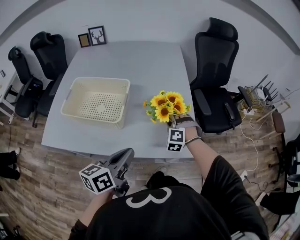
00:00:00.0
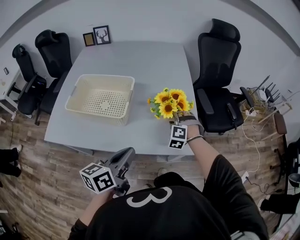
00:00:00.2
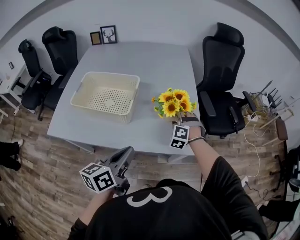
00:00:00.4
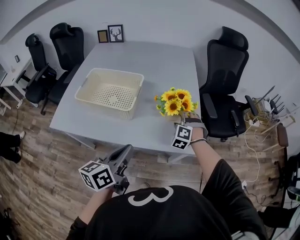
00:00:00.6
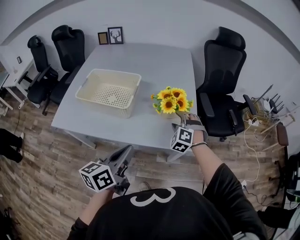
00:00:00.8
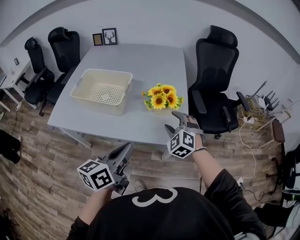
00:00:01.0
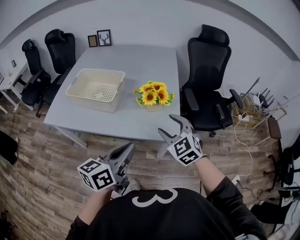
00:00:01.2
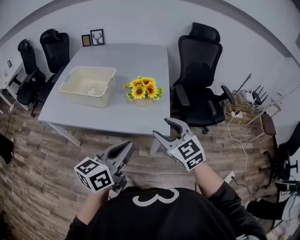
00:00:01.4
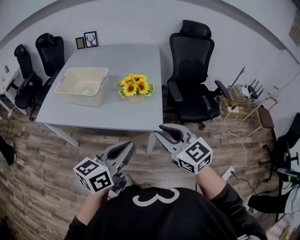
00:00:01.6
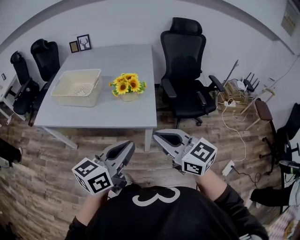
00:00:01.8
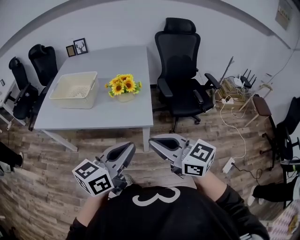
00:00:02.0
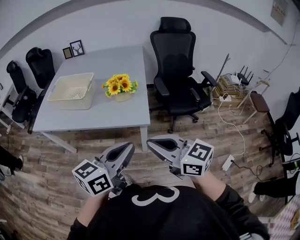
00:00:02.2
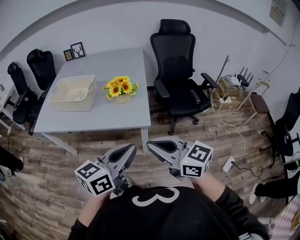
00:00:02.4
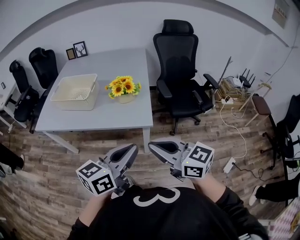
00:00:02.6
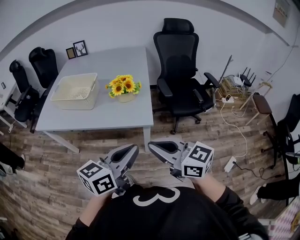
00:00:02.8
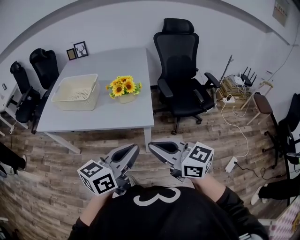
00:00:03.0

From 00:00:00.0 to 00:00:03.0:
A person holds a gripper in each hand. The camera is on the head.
From 00:00:00.0 to 00:00:01.6: The right gripper is displaced backward, upward and to the right by roughly 40 cm, tips its fingers upward by roughly 30 degrees, and opens, then closes once more; the left gripper is displaced to the right, backward and upward by approximately 25 cm.
From 00:00:01.6 to 00:00:03.0: The right gripper moves backward, about 10 cm, rotates roughly 20 degrees, and closes. The left gripper heads to the right and backward, covering some 10 cm.

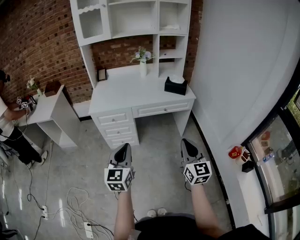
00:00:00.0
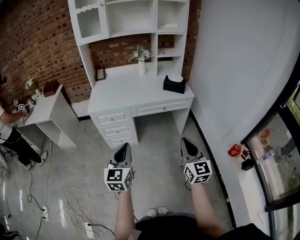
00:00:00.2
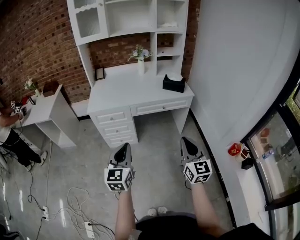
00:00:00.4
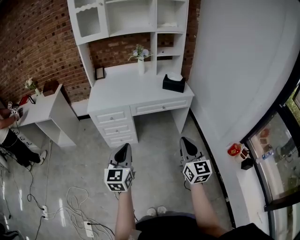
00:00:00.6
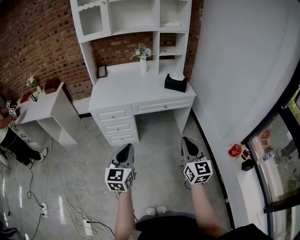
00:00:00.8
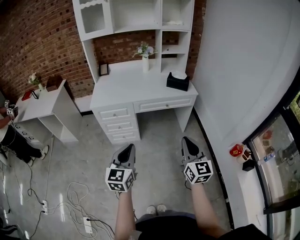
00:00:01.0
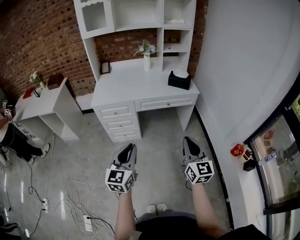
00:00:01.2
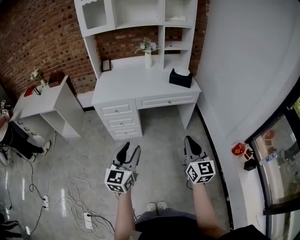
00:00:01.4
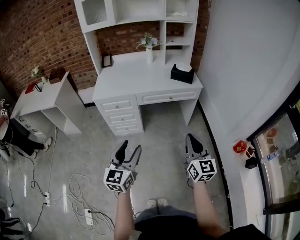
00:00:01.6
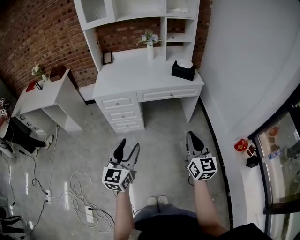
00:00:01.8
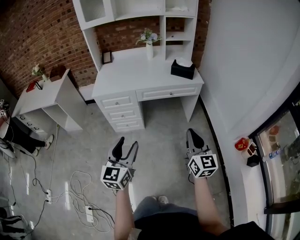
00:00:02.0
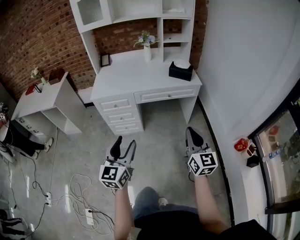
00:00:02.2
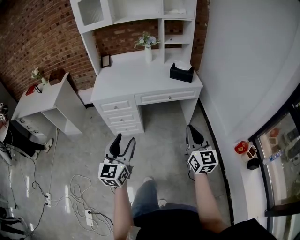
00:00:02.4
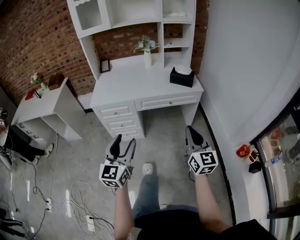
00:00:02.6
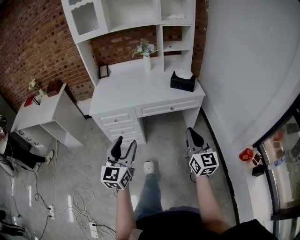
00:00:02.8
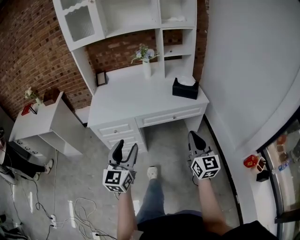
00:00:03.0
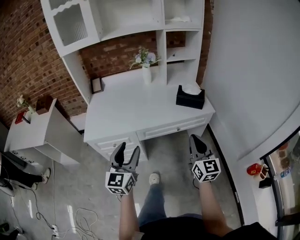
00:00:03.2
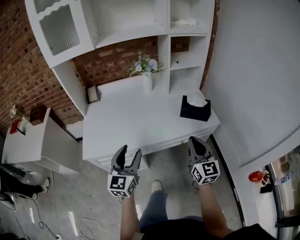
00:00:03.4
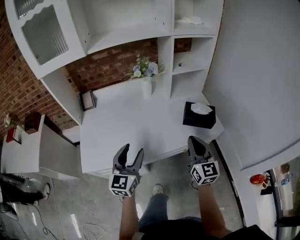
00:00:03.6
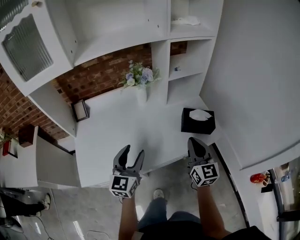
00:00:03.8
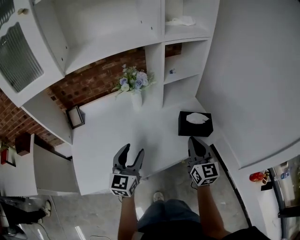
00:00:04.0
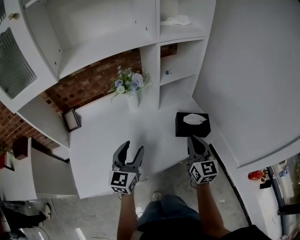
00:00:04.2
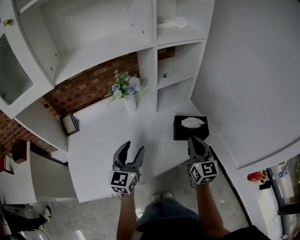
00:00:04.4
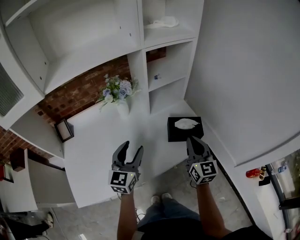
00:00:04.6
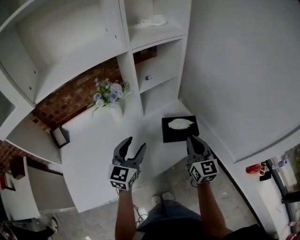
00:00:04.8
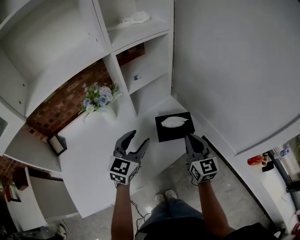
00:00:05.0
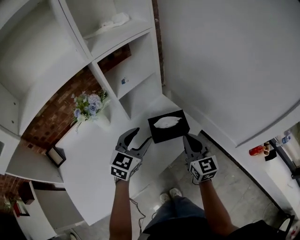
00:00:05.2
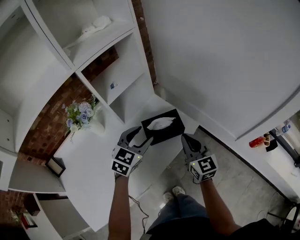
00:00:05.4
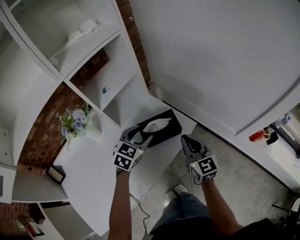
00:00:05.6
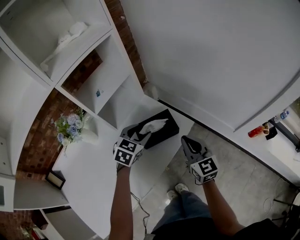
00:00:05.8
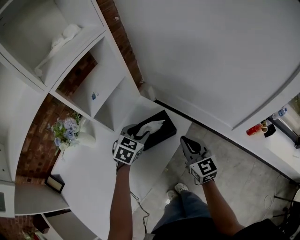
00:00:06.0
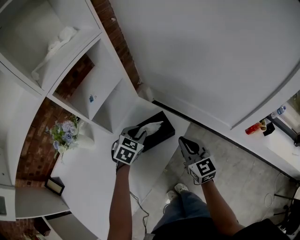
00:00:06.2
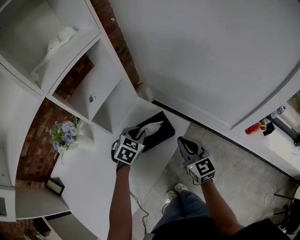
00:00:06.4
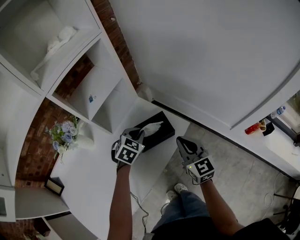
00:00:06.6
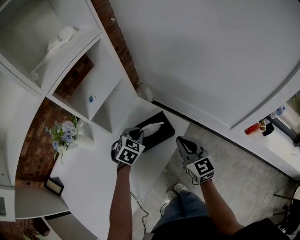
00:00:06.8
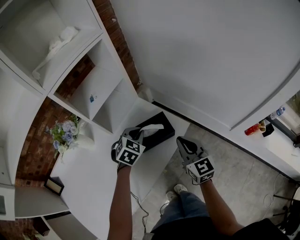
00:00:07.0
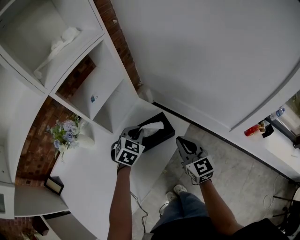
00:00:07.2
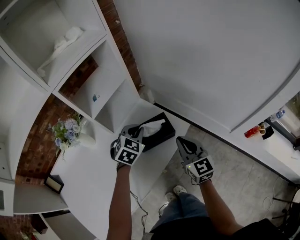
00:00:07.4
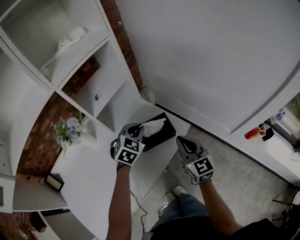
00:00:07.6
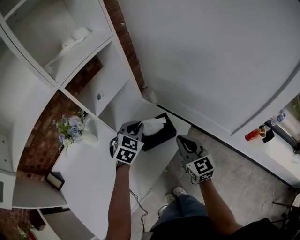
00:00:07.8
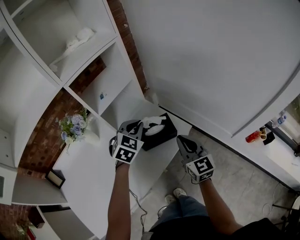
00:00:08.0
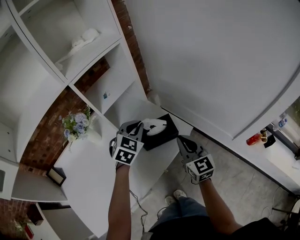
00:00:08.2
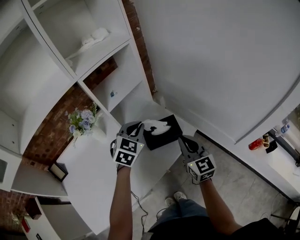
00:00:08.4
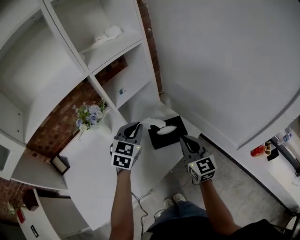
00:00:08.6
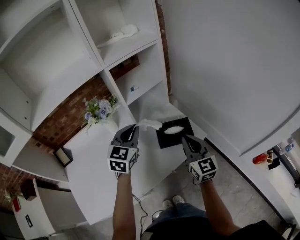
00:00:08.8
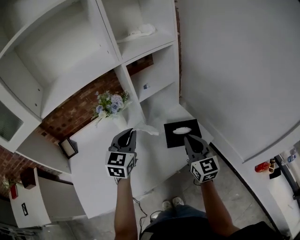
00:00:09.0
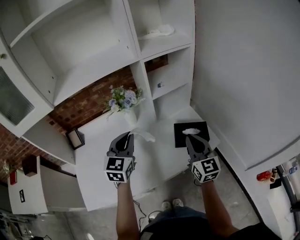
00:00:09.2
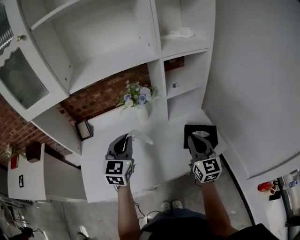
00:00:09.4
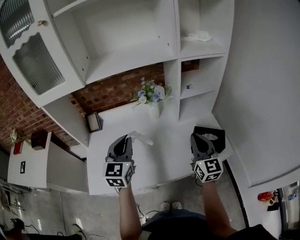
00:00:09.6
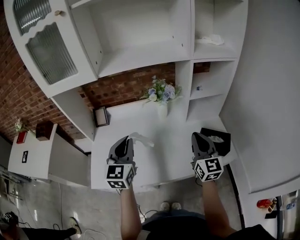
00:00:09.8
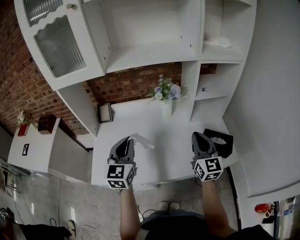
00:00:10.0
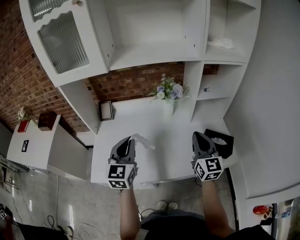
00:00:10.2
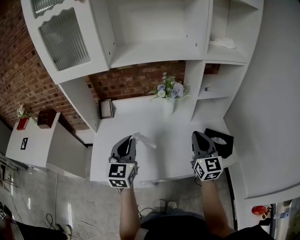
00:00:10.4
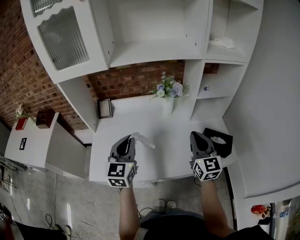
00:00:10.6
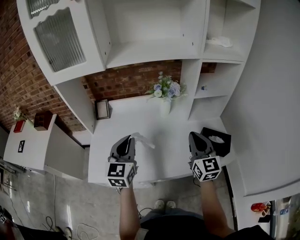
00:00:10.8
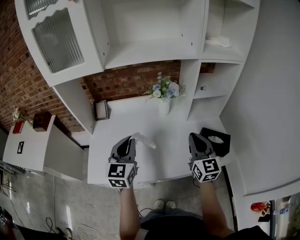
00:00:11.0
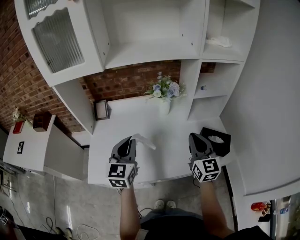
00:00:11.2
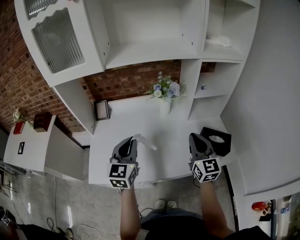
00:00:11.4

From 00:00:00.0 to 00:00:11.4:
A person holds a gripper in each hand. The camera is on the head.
From 00:00:00.0 to 00:00:01.4: The left gripper opens.
From 00:00:01.4 to 00:00:02.8: The grippers both shift forward by about 10 cm.
From 00:00:02.8 to 00:00:04.2: The pair of grippers is taken forward, about 50 cm.
From 00:00:04.2 to 00:00:05.6: The right gripper changes place by roughly 15 cm, while the left gripper changes place by roughly 30 cm, and turns by approximately 50 degrees.
From 00:00:05.6 to 00:00:07.2: The left gripper changes place by approximately 5 cm, and closes up.
From 00:00:07.2 to 00:00:08.6: The left gripper moves upward and to the left, about 15 cm, and rotates approximately 20 degrees; the right gripper heads upward, covering about 5 cm.
From 00:00:08.6 to 00:00:10.0: The right gripper moves roughly 25 cm, and changes its angle by roughly 30 degrees. Meanwhile the left gripper shifts by some 40 cm, and swivels roughly 50 degrees.
From 00:00:10.0 to 00:00:11.4: There are only small adjustments of the grippers.

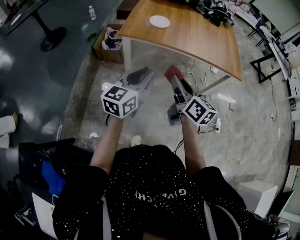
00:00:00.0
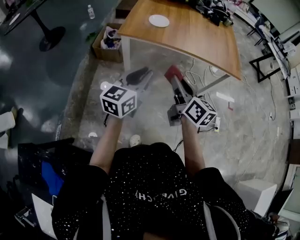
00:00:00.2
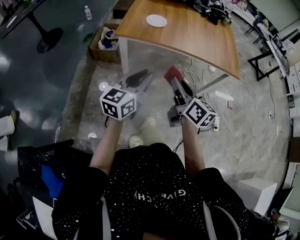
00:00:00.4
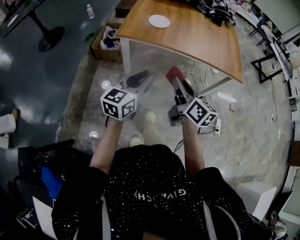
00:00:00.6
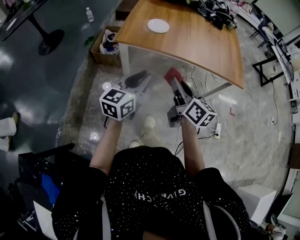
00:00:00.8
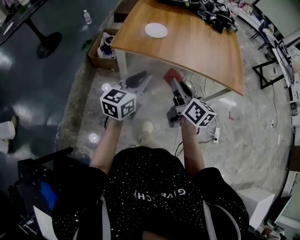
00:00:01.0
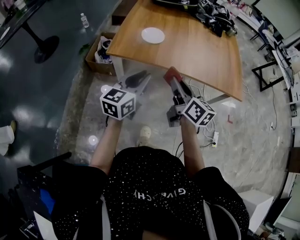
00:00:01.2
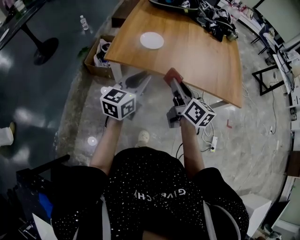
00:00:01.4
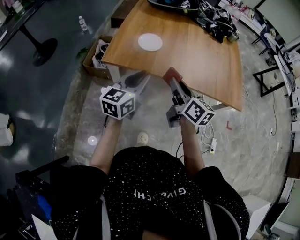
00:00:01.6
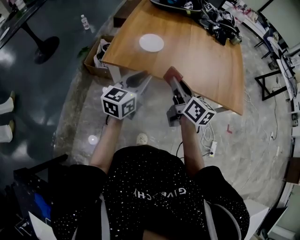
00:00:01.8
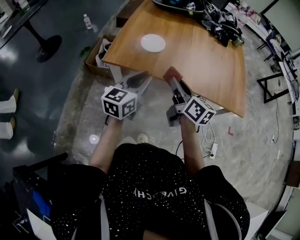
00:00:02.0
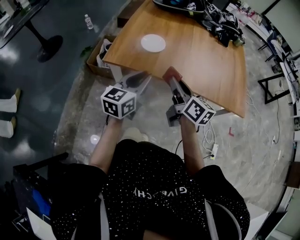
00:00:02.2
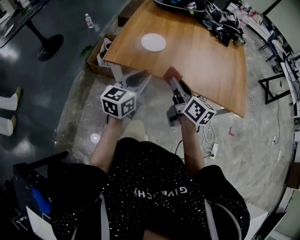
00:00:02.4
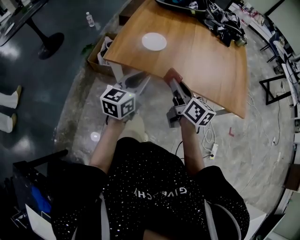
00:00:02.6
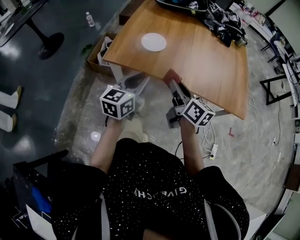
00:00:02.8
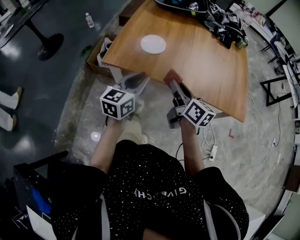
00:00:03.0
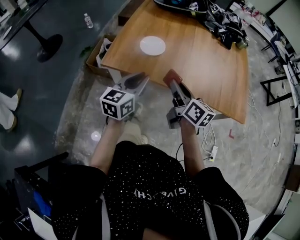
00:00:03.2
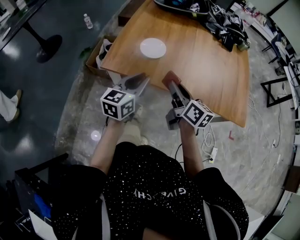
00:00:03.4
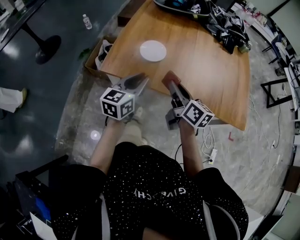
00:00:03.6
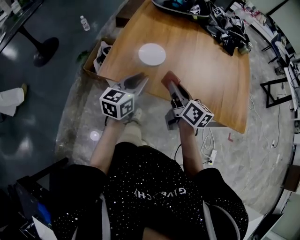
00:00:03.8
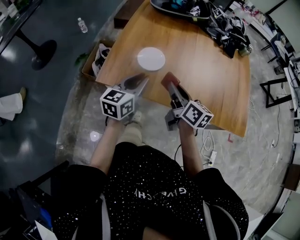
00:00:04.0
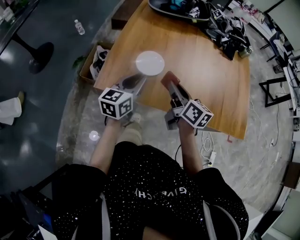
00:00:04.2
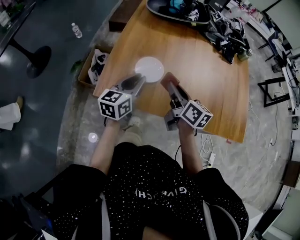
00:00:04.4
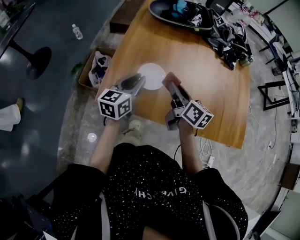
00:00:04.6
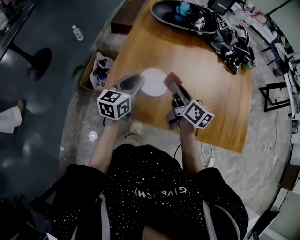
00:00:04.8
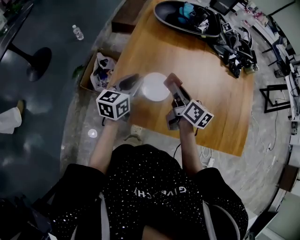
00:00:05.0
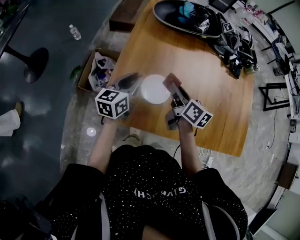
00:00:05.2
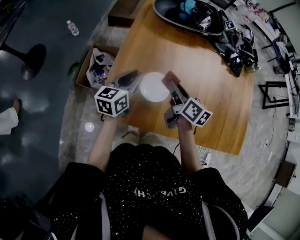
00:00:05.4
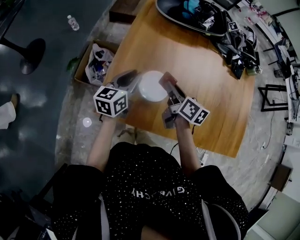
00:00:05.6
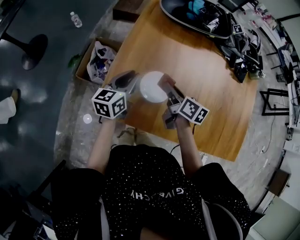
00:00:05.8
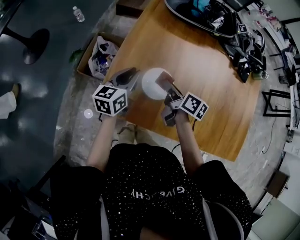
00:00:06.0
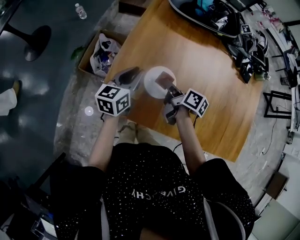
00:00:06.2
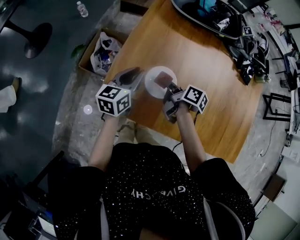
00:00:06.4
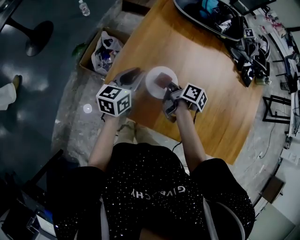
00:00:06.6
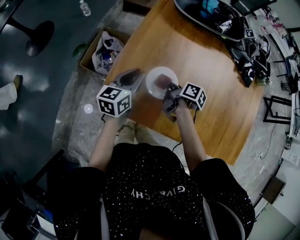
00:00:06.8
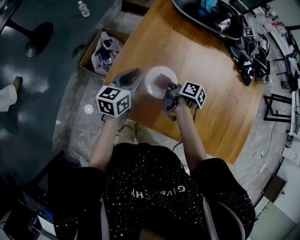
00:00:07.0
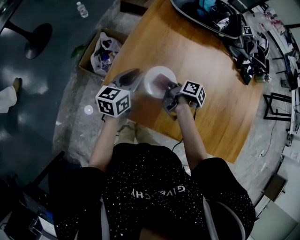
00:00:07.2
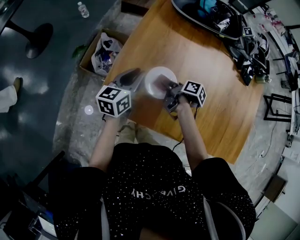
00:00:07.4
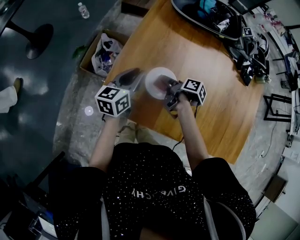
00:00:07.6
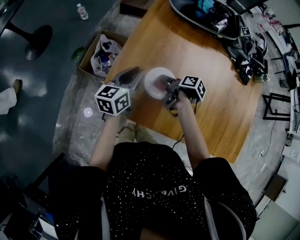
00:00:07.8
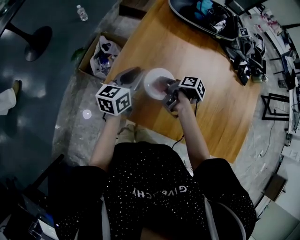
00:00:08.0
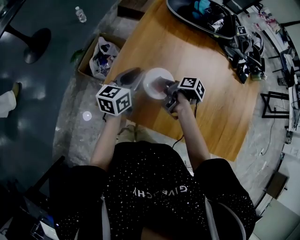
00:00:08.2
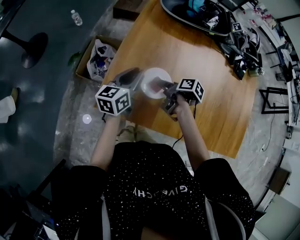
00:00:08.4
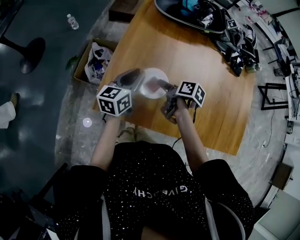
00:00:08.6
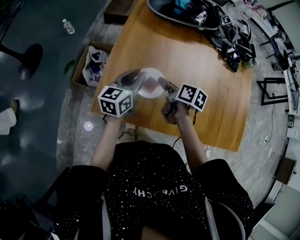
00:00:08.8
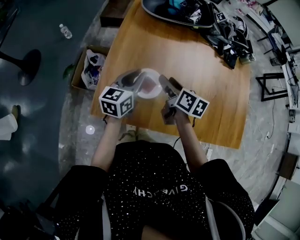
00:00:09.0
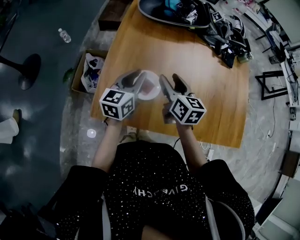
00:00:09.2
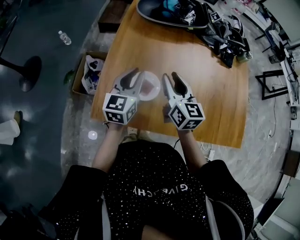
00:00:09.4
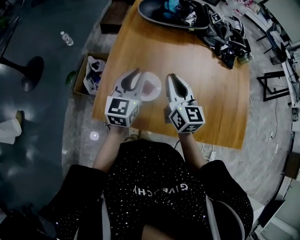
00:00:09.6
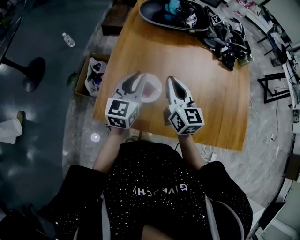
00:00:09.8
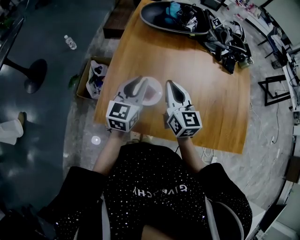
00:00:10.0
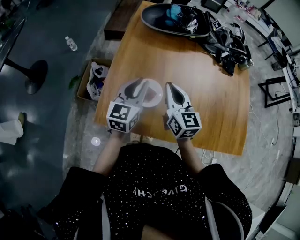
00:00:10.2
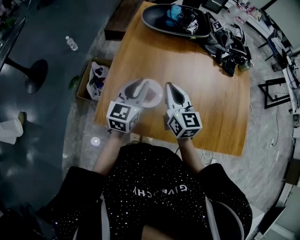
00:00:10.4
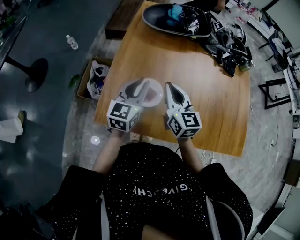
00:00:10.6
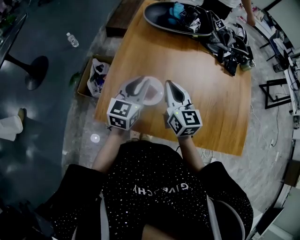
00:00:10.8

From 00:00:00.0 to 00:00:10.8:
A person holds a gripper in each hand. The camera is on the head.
From 00:00:00.0 to 00:00:01.6: The grippers both shift forward by about 25 cm.
From 00:00:01.6 to 00:00:03.0: The grippers stay close to where they were, moving slightly.
From 00:00:03.0 to 00:00:04.6: The two grippers go about 25 cm forward.
From 00:00:04.6 to 00:00:06.2: The right gripper is displaced downward, forward and to the left by approximately 15 cm, and rotates roughly 30 degrees. The left gripper moves forward, downward and to the left, approximately 10 cm.
From 00:00:06.2 to 00:00:07.8: The right gripper changes its angle by about 30 degrees, and opens up.
From 00:00:07.8 to 00:00:09.2: The right gripper moves upward, some 15 cm, and turns by approximately 60 degrees, while the left gripper moves to the right and upward, some 10 cm.
From 00:00:09.2 to 00:00:10.8: The right gripper closes up.
